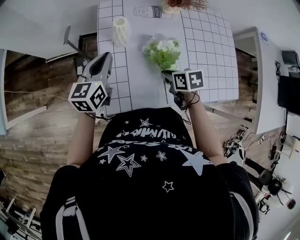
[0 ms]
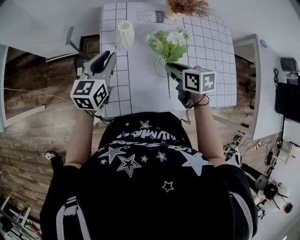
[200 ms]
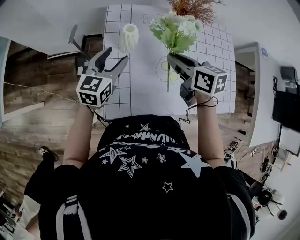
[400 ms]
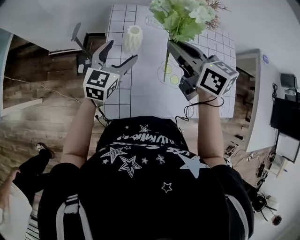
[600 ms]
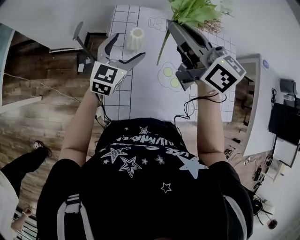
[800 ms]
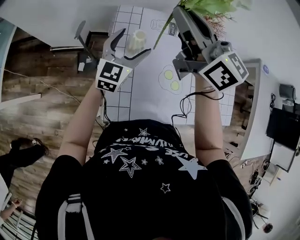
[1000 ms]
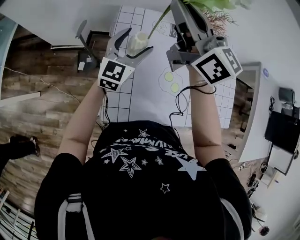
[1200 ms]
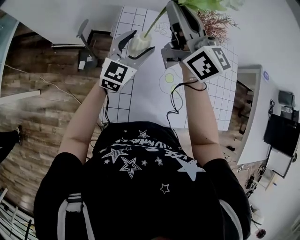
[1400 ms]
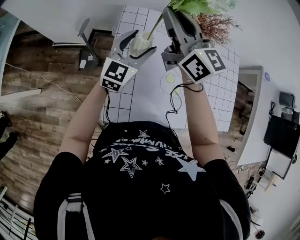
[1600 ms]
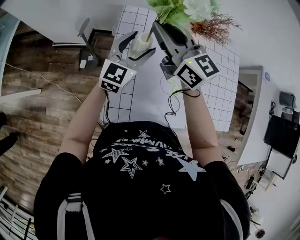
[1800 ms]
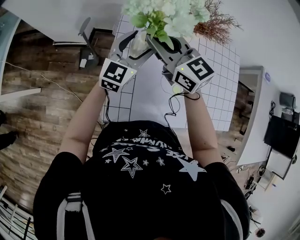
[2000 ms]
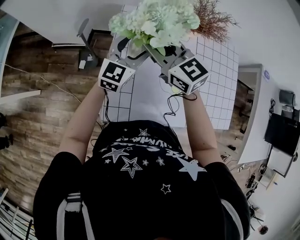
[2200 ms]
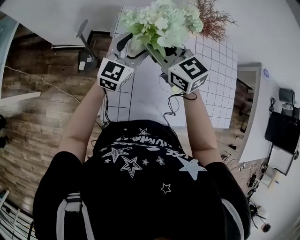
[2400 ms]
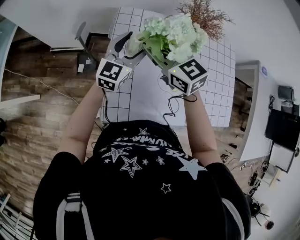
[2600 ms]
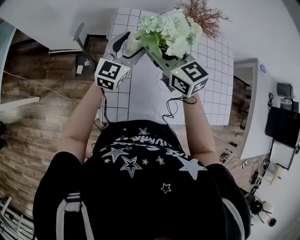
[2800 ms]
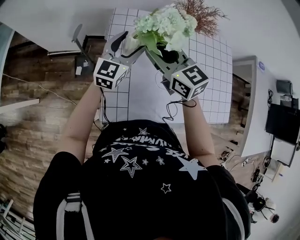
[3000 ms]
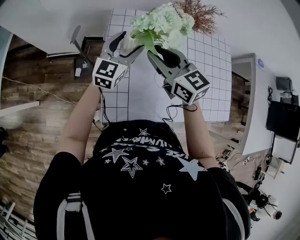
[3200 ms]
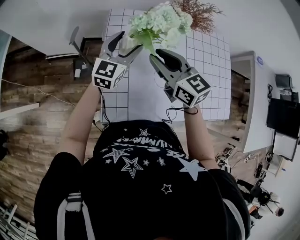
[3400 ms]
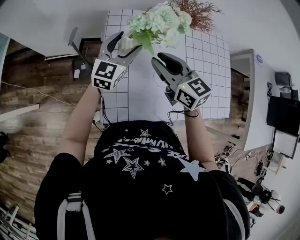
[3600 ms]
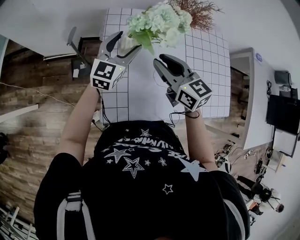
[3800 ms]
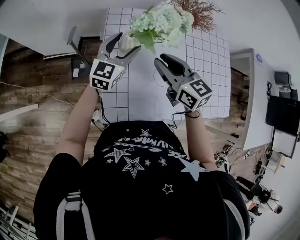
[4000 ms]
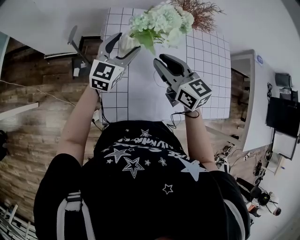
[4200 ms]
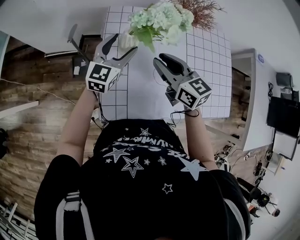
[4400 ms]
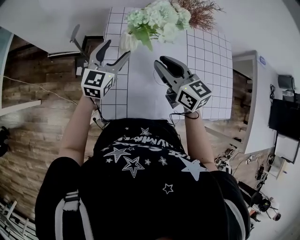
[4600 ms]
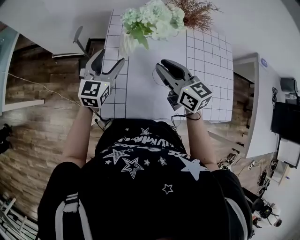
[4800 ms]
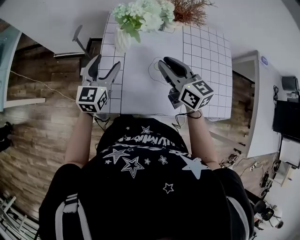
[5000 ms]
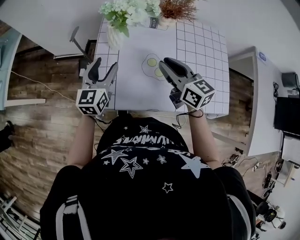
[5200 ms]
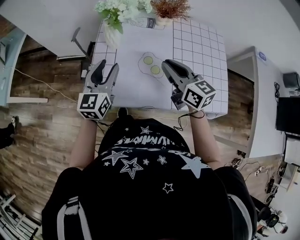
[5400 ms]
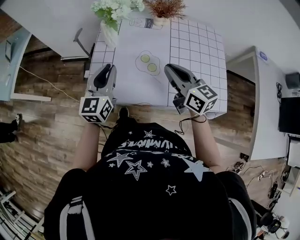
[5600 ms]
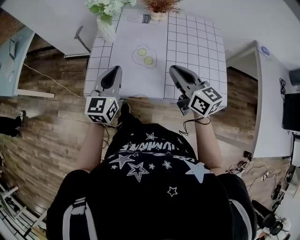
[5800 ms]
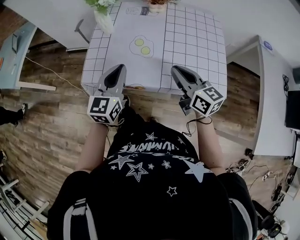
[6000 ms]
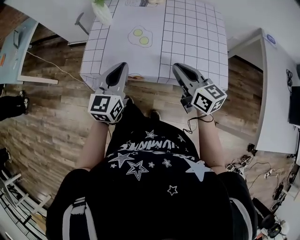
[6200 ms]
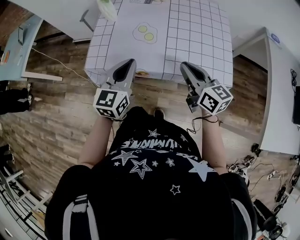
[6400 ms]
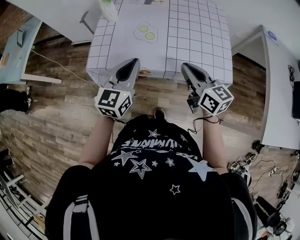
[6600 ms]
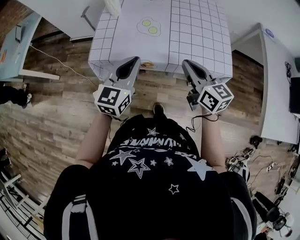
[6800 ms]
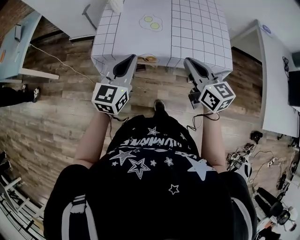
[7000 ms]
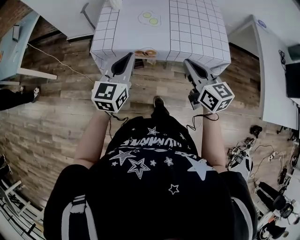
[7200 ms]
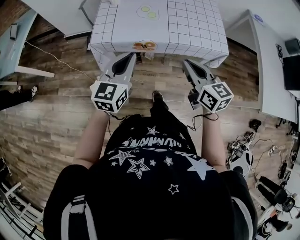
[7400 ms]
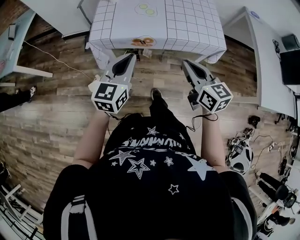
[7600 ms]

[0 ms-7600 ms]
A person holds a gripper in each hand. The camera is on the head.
0 ms to 1600 ms: The left gripper is displaced forward and to the right by roughly 10 cm, turns by about 30 degrees, and opens. Meanwhile the right gripper shifts some 35 cm upward and forward, and tips its fingers upward by some 60 degrees.
1600 ms to 3000 ms: The right gripper travels downward and backward by about 15 cm, and rotates about 20 degrees.
3000 ms to 4600 ms: The left gripper changes place by some 5 cm. The right gripper is displaced backward and to the right by approximately 5 cm.
4600 ms to 6000 ms: The two grippers go approximately 30 cm backward and to the right. The left gripper closes up; the right gripper closes up.
6000 ms to 7600 ms: Both grippers travel together backward, about 15 cm.

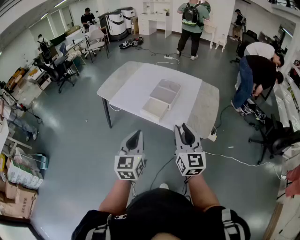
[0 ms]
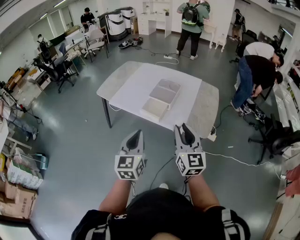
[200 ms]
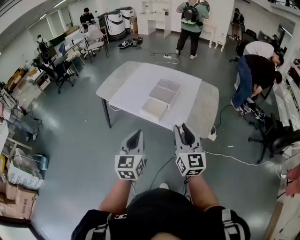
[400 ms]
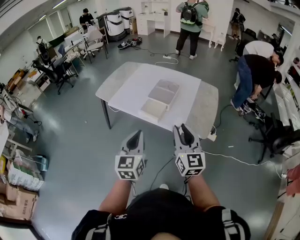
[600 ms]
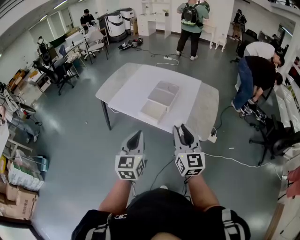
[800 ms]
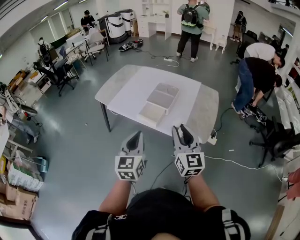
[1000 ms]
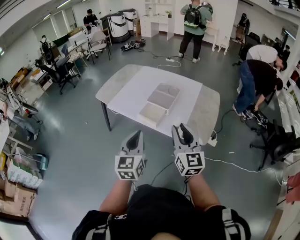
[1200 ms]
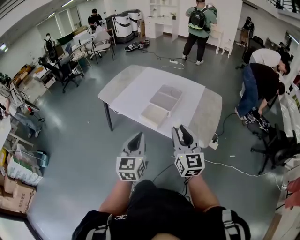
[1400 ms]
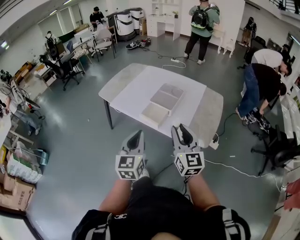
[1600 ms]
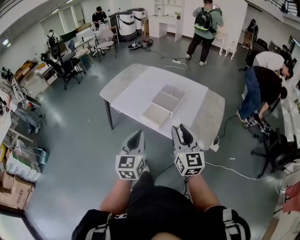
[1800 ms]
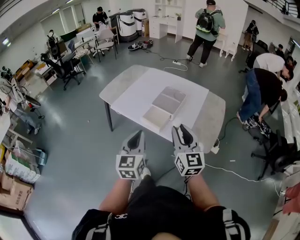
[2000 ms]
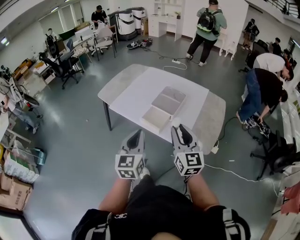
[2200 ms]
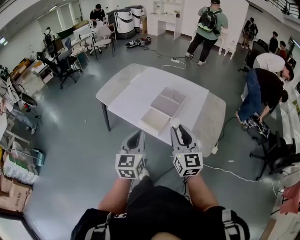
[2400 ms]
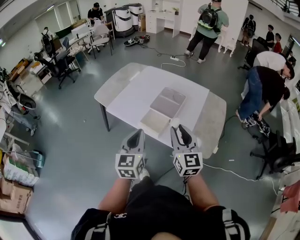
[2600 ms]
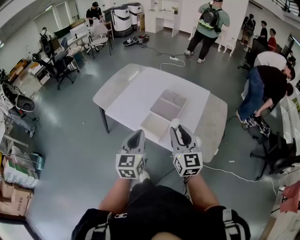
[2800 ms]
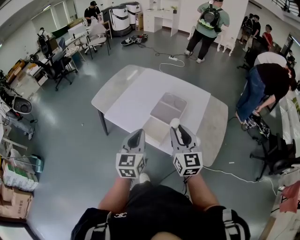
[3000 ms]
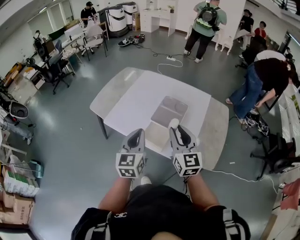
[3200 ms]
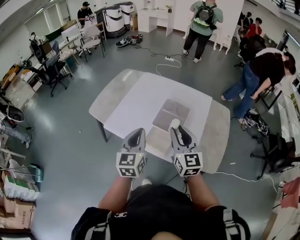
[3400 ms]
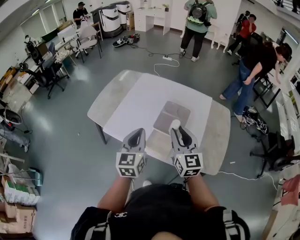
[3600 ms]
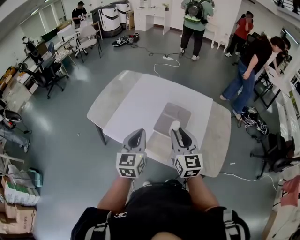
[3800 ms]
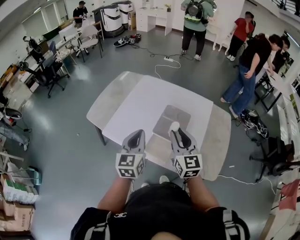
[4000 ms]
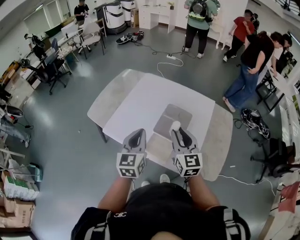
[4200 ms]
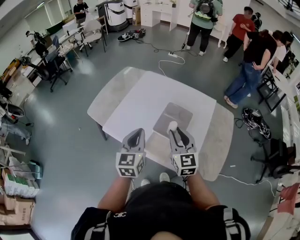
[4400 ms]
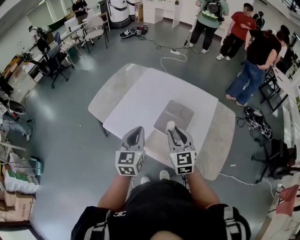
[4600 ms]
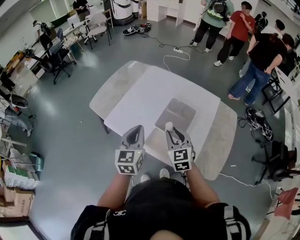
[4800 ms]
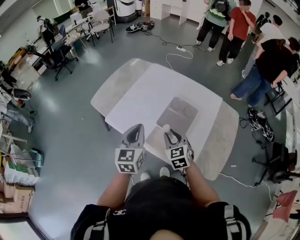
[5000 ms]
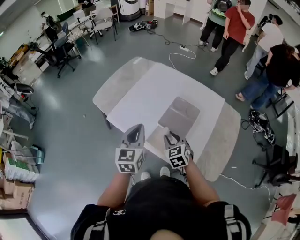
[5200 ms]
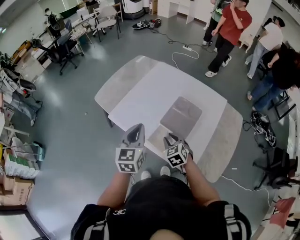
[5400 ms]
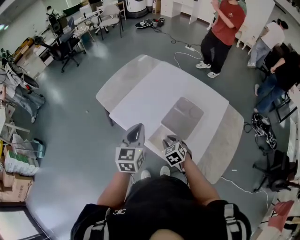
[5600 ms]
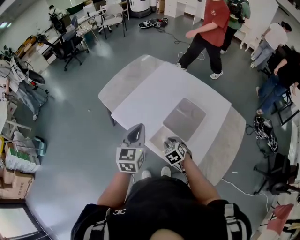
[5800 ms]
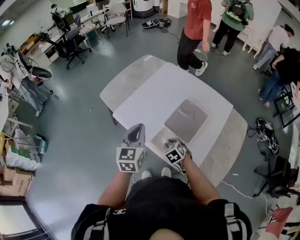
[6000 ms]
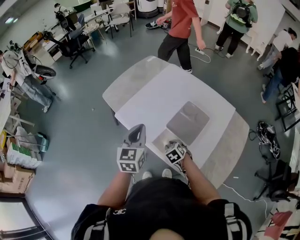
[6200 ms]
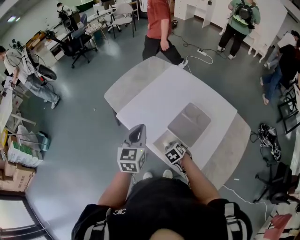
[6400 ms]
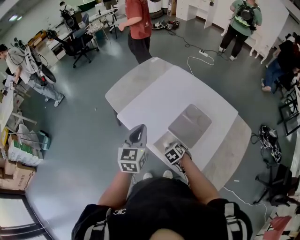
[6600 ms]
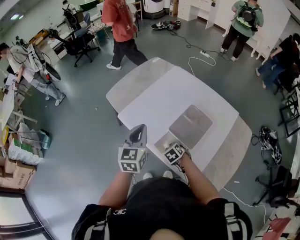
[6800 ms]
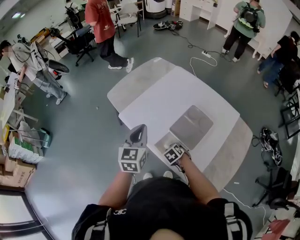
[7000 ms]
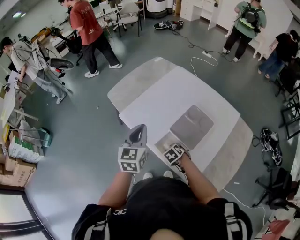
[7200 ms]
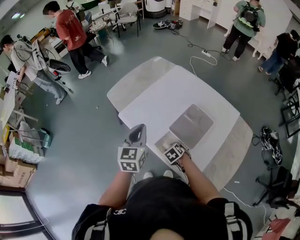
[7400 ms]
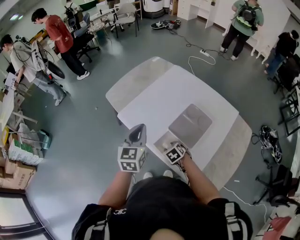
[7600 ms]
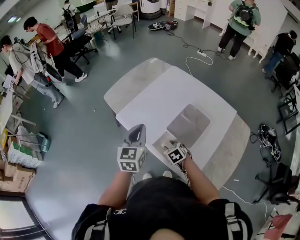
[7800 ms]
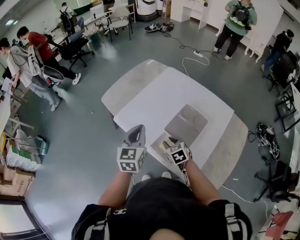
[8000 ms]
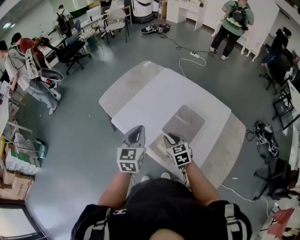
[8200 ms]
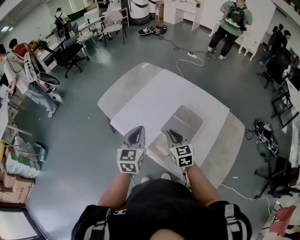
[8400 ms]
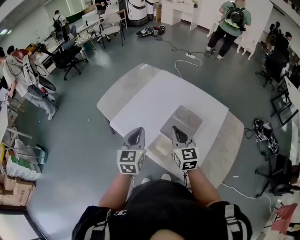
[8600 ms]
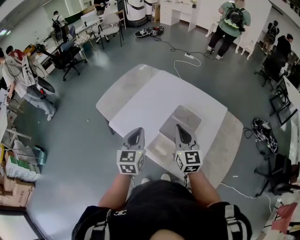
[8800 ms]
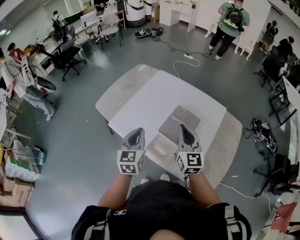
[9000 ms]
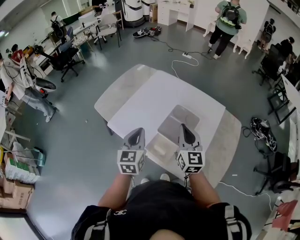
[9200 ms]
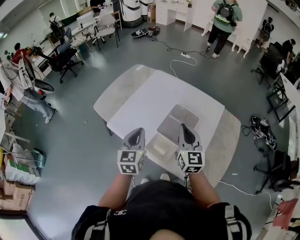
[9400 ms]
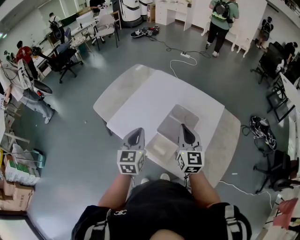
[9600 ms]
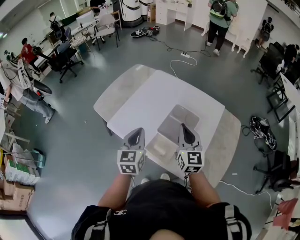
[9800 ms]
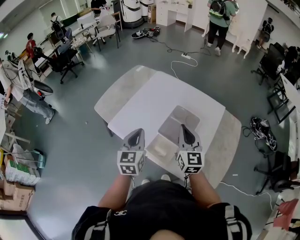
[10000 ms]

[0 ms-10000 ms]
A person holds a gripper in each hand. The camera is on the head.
0 ms to 1400 ms: The right gripper goes about 5 cm forward. Meanwhile the left gripper changes place by roughly 5 cm.
1400 ms to 2800 ms: Both grippers move forward, some 15 cm.
2800 ms to 4200 ms: Both grippers travel together forward, some 20 cm.
4200 ms to 5800 ms: The left gripper ends up some 5 cm from where it was; the right gripper goes about 25 cm downward, and angles its fingers downward, by roughly 50 degrees.
5800 ms to 7200 ms: The right gripper heads downward, covering roughly 10 cm.
7200 ms to 8600 ms: The right gripper is displaced upward by about 25 cm, angles its fingers upward, by some 60 degrees, and closes up.
8600 ms to 10000 ms: The right gripper heads to the right, covering approximately 5 cm.

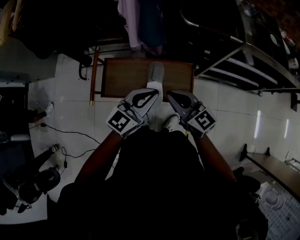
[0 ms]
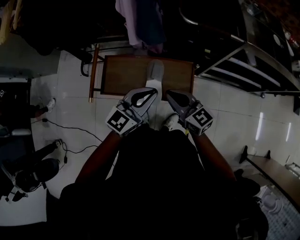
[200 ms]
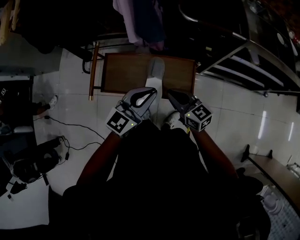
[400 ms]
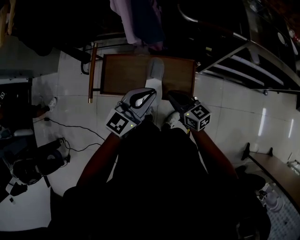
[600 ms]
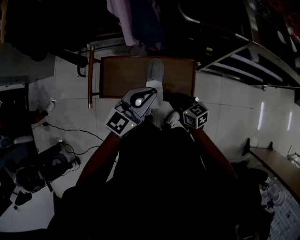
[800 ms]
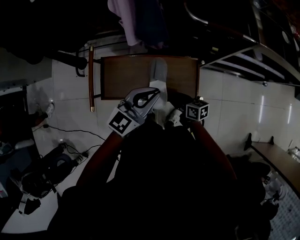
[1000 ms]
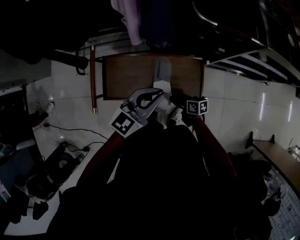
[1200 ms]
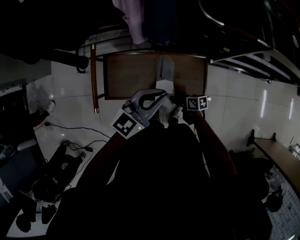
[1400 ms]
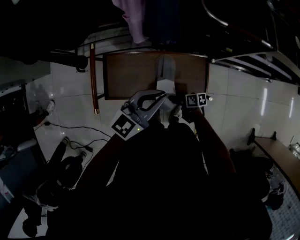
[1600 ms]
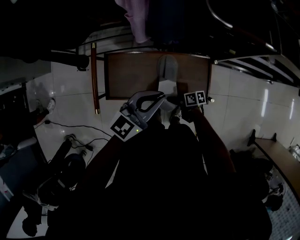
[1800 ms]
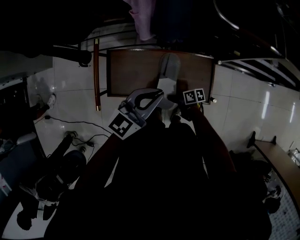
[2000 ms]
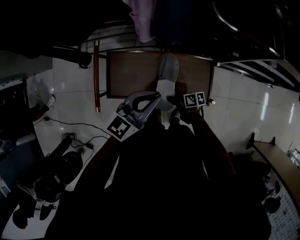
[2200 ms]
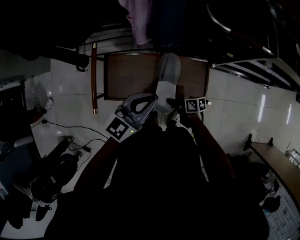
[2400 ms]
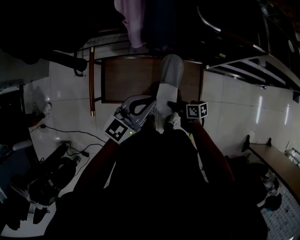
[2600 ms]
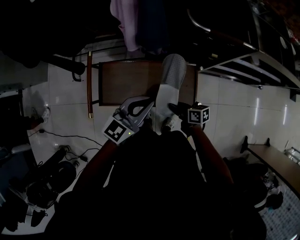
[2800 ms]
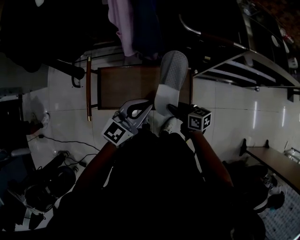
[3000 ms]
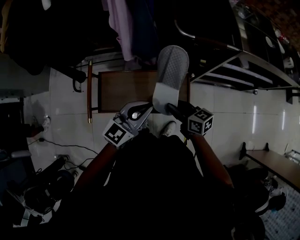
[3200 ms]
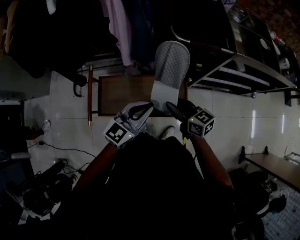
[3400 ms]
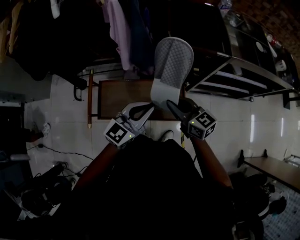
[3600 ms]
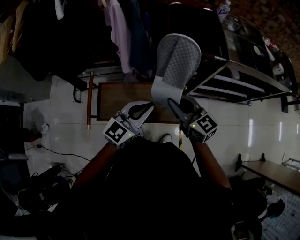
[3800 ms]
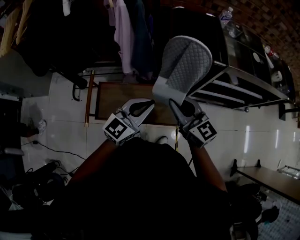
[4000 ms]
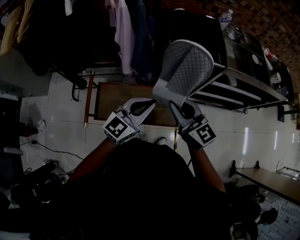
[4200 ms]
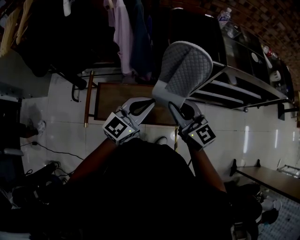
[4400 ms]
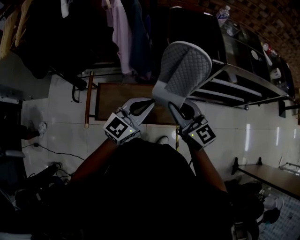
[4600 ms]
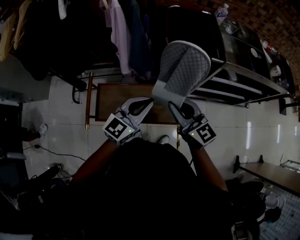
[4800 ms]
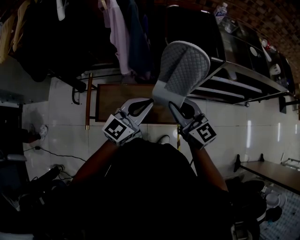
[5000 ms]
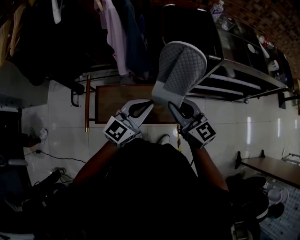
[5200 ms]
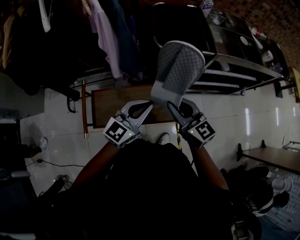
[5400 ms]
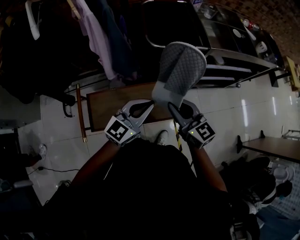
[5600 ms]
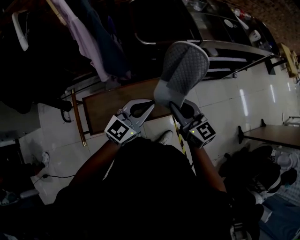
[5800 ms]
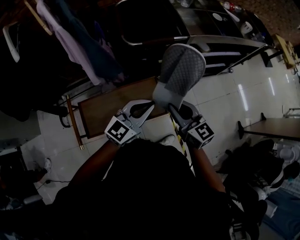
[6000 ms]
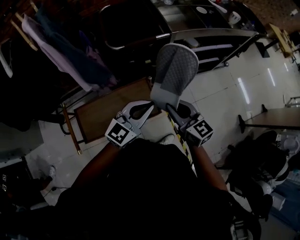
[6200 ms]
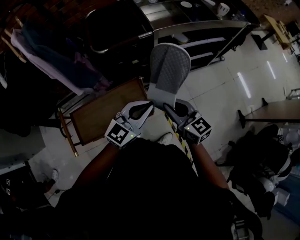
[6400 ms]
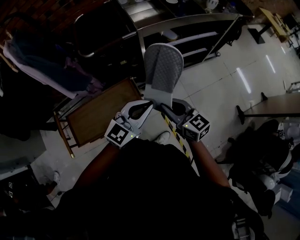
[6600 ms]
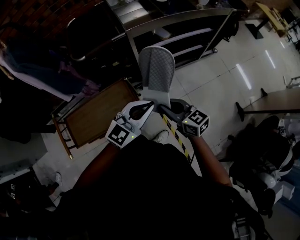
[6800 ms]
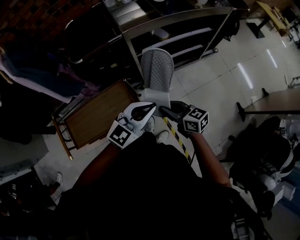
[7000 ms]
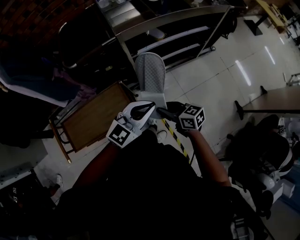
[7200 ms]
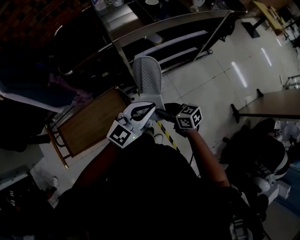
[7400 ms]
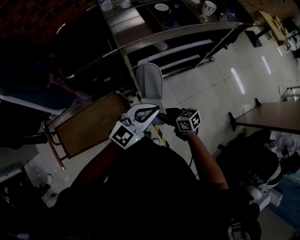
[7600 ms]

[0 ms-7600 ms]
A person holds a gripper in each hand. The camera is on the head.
0 ms to 1600 ms: The right gripper is displaced downward by approximately 35 cm, rolls clockwise, seen from behind, by approximately 60 degrees, and opens up, while the left gripper moves roughly 10 cm.
1600 ms to 3000 ms: The right gripper moves upward, about 20 cm, swivels approximately 30 degrees, and closes up. The left gripper ends up roughly 5 cm from where it was.
3000 ms to 4600 ms: The left gripper goes approximately 10 cm upward and to the right, while the right gripper moves upward, approximately 25 cm, and rolls counterclockwise, seen from behind, by about 40 degrees.
4600 ms to 6000 ms: The grippers both shift to the right by about 10 cm. The right gripper swivels approximately 20 degrees. Meanwhile the left gripper changes its angle by roughly 20 degrees.
6000 ms to 7600 ms: The left gripper is displaced to the right by roughly 30 cm. Meanwhile the right gripper heads to the right and downward, covering roughly 30 cm, and changes its angle by roughly 40 degrees.
